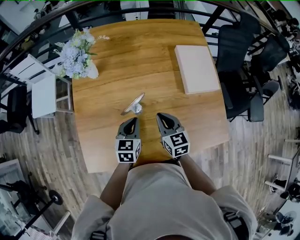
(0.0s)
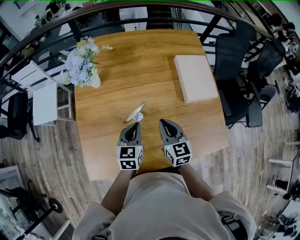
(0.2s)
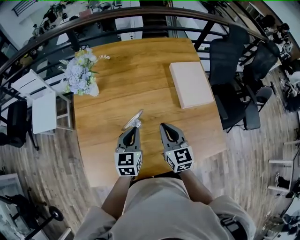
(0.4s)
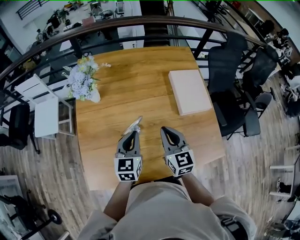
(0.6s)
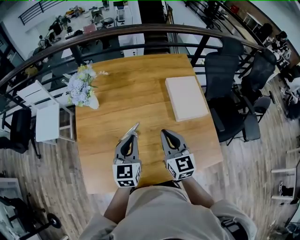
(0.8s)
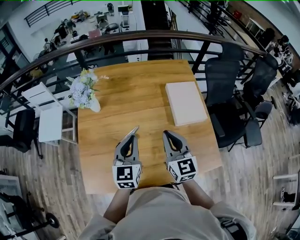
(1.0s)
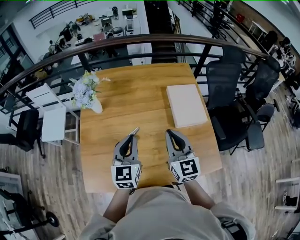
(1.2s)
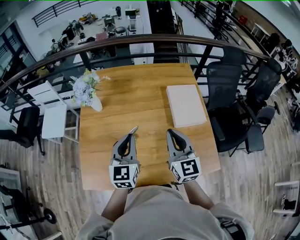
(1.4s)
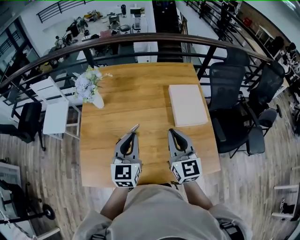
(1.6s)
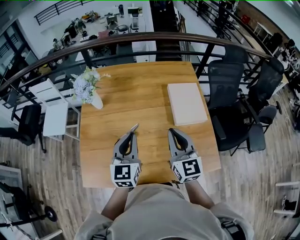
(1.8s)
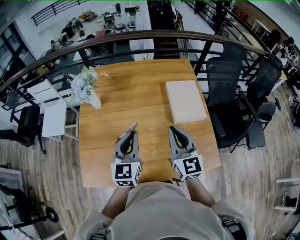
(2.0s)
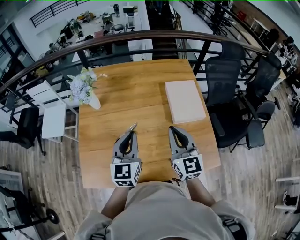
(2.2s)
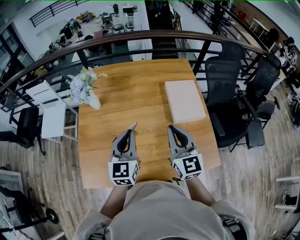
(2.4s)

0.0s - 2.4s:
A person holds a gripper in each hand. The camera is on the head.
0.0s - 1.2s: The right gripper shifts about 20 cm upward and to the right, and rotates roughly 30 degrees. The left gripper goes about 20 cm upward, and turns by roughly 30 degrees.
1.2s - 2.4s: The grippers stay close to where they were, moving slightly.

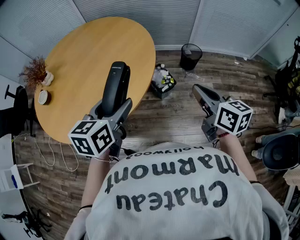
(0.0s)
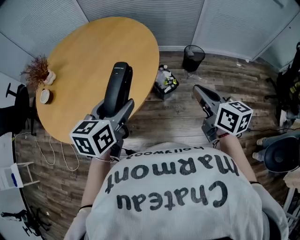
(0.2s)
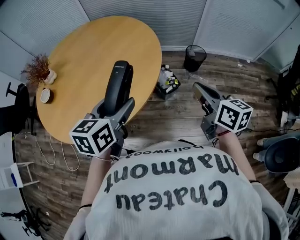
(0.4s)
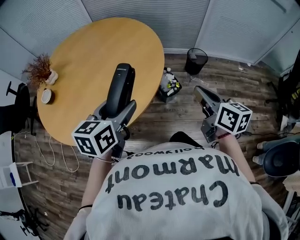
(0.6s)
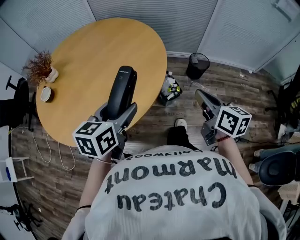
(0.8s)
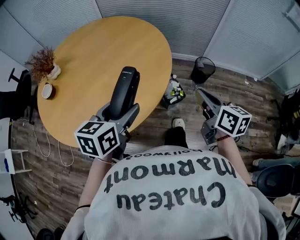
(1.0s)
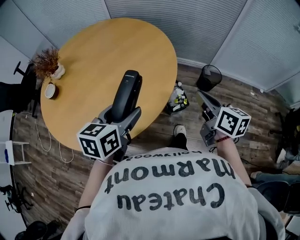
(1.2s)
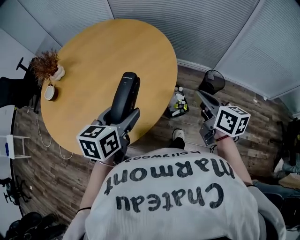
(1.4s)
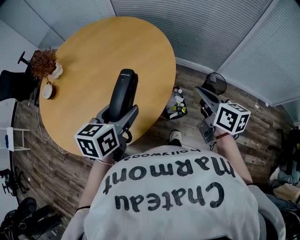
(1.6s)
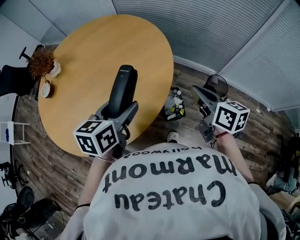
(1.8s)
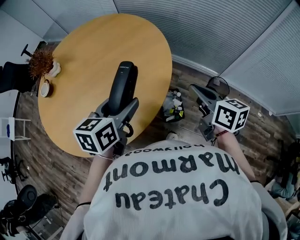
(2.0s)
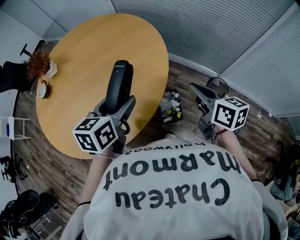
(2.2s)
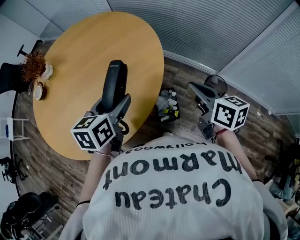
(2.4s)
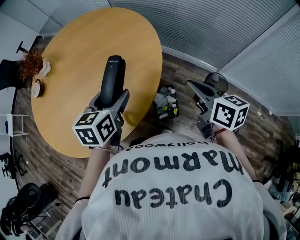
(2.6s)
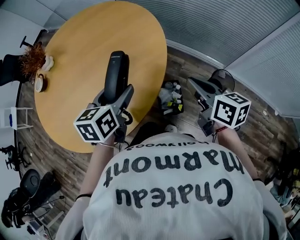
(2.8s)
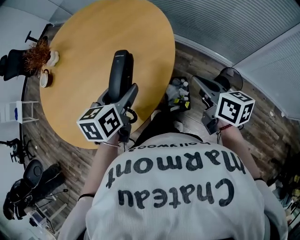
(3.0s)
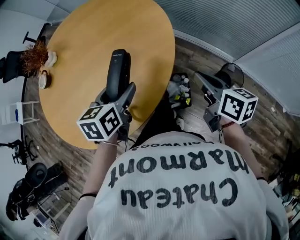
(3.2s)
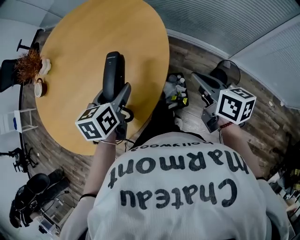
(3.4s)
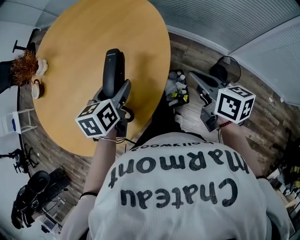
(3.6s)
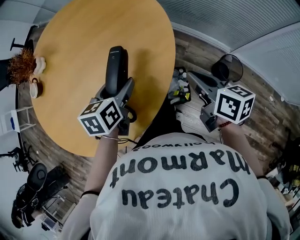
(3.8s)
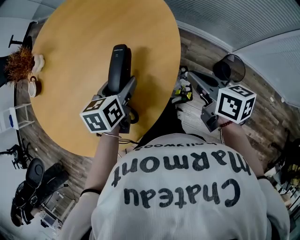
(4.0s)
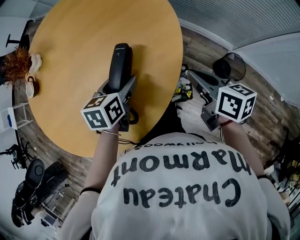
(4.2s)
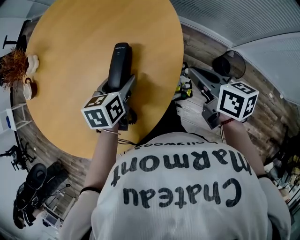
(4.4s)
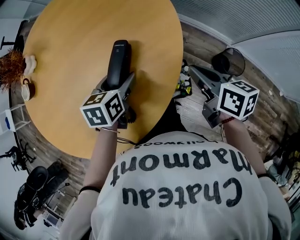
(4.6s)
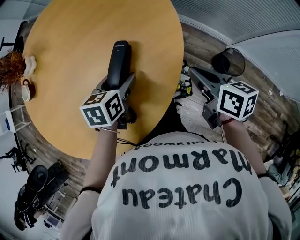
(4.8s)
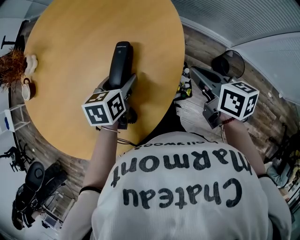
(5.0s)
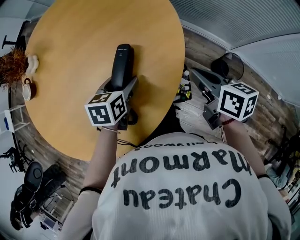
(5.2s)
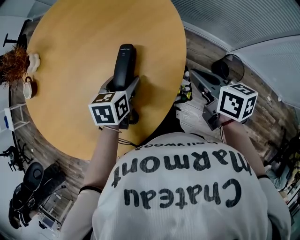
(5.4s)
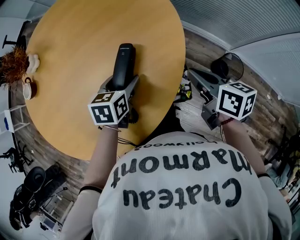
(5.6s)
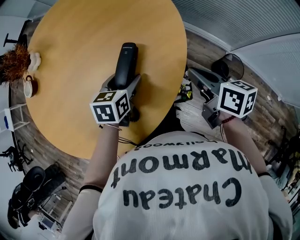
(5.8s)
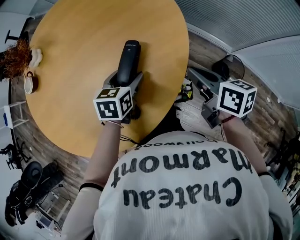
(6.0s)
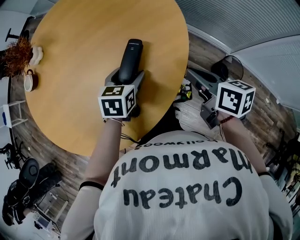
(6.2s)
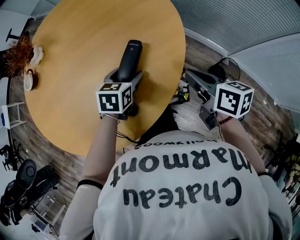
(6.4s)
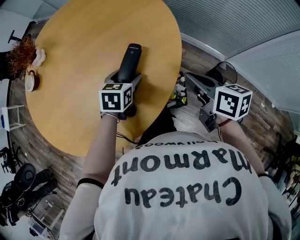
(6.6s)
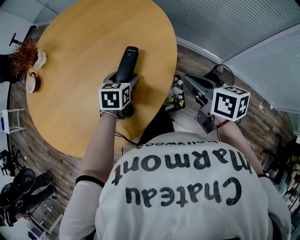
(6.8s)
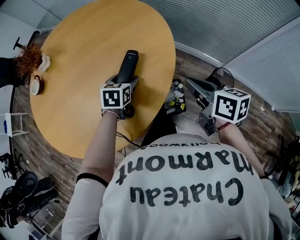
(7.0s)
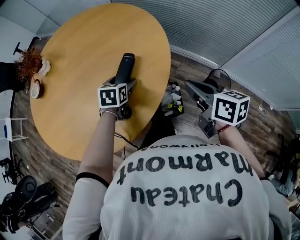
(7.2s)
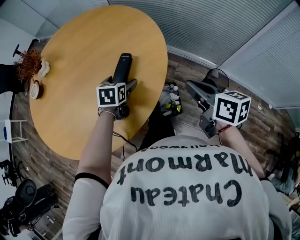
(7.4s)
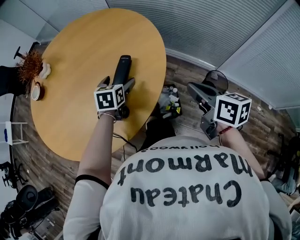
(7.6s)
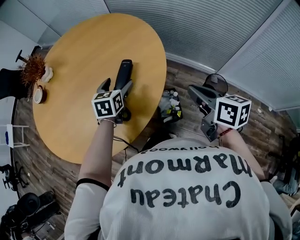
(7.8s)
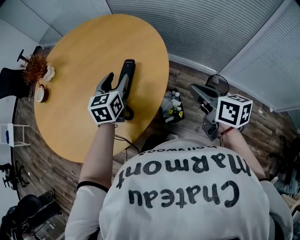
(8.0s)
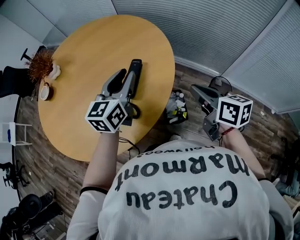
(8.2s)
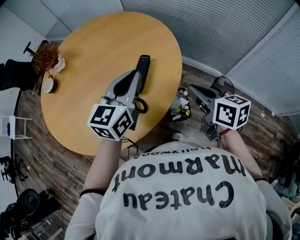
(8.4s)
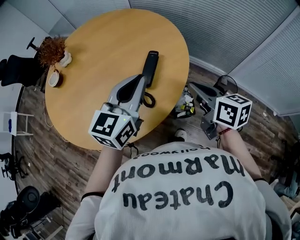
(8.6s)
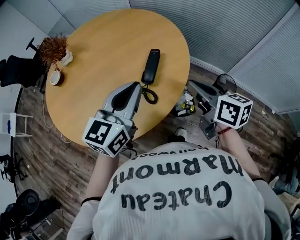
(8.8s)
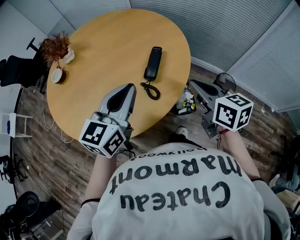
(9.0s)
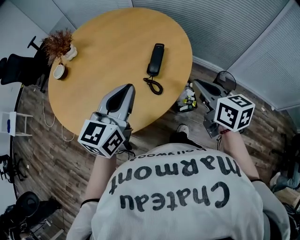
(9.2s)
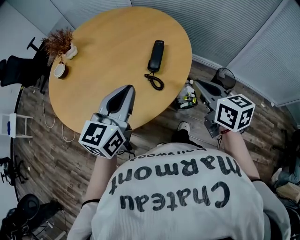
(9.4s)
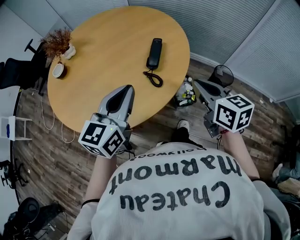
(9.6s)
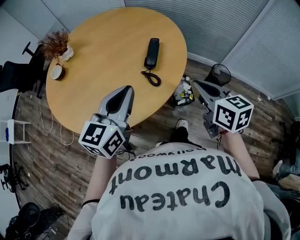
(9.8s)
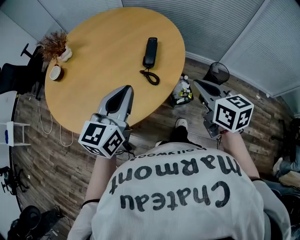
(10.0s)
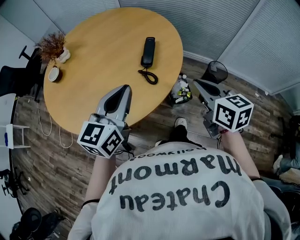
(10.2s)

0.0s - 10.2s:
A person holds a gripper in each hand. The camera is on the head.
0.0s - 1.4s: The left gripper travels forward by some 10 cm, while the right gripper goes roughly 20 cm forward.
1.4s - 3.0s: The grippers both shift forward and to the right by some 20 cm. The left gripper rotates roughly 20 degrees; the right gripper swivels roughly 20 degrees.
3.0s - 4.4s: The right gripper travels downward by about 5 cm. Meanwhile the left gripper goes approximately 15 cm downward and forward.
4.4s - 5.8s: The grippers make only small movements.
5.8s - 7.2s: The right gripper travels backward and upward by about 10 cm.
7.2s - 8.8s: The left gripper goes about 30 cm upward and backward, tips its fingers upward by about 40 degrees, and closes. The right gripper moves to the left, upward and backward, about 15 cm.
8.8s - 10.2s: The right gripper travels backward by some 10 cm; the left gripper travels backward and to the left by approximately 10 cm.

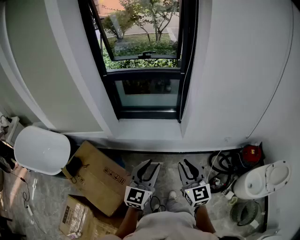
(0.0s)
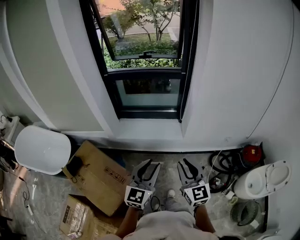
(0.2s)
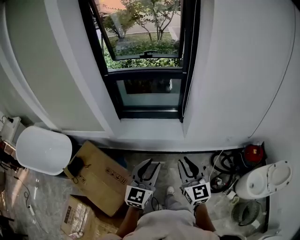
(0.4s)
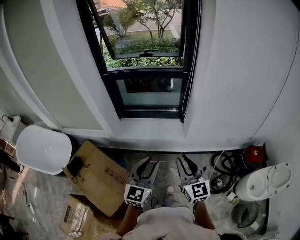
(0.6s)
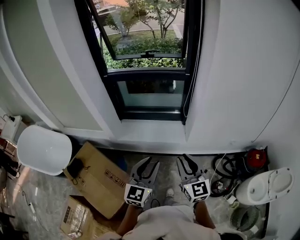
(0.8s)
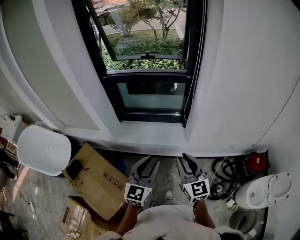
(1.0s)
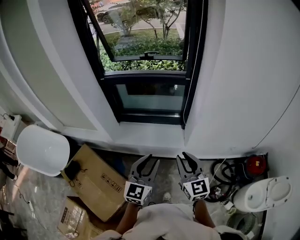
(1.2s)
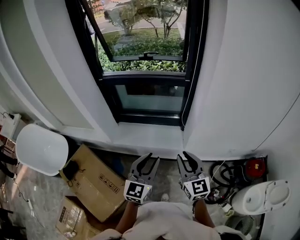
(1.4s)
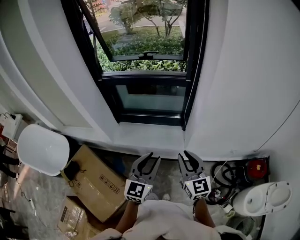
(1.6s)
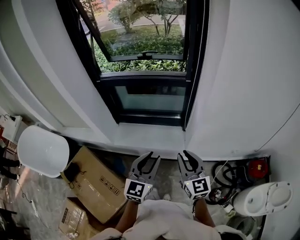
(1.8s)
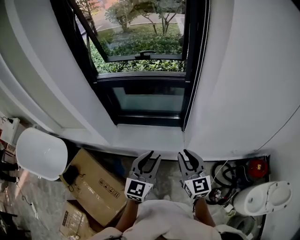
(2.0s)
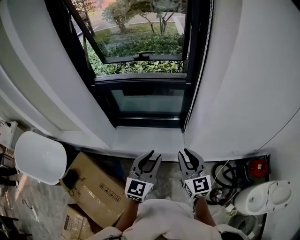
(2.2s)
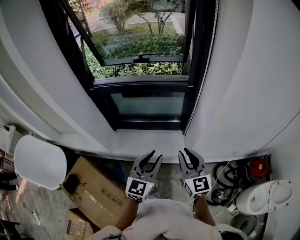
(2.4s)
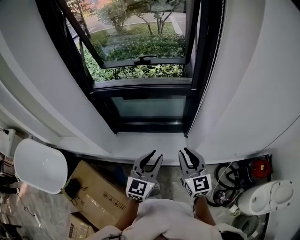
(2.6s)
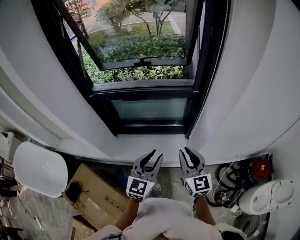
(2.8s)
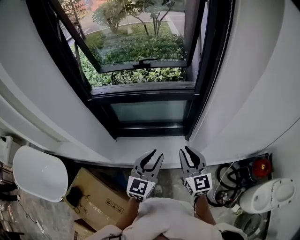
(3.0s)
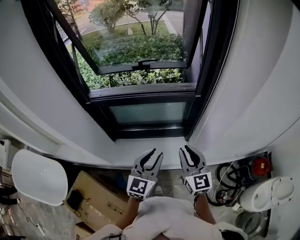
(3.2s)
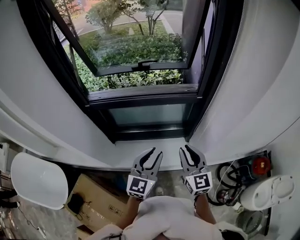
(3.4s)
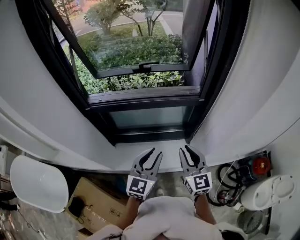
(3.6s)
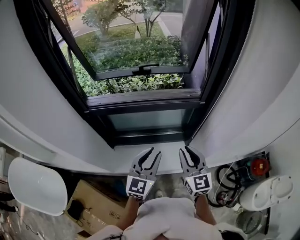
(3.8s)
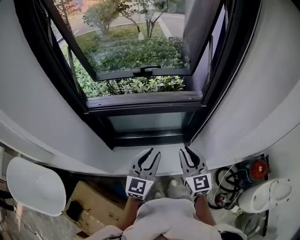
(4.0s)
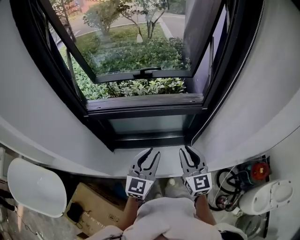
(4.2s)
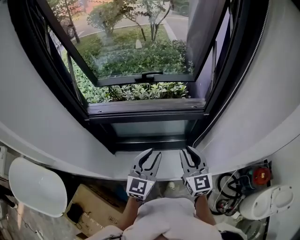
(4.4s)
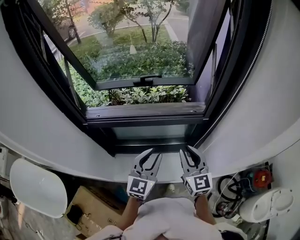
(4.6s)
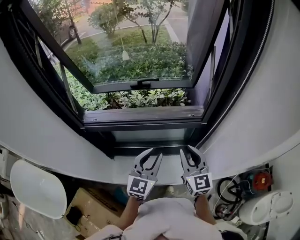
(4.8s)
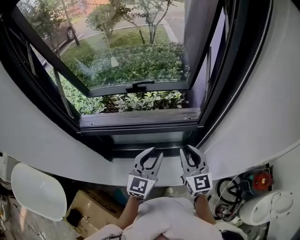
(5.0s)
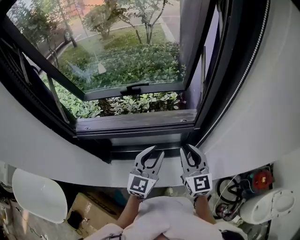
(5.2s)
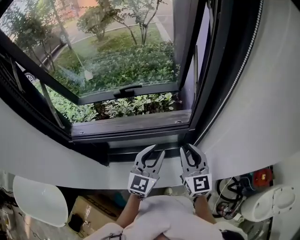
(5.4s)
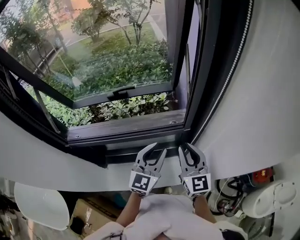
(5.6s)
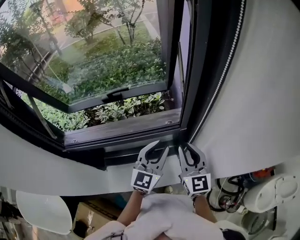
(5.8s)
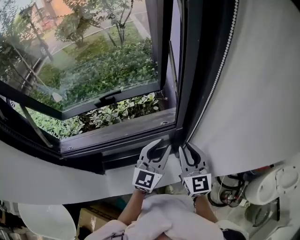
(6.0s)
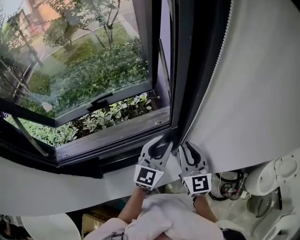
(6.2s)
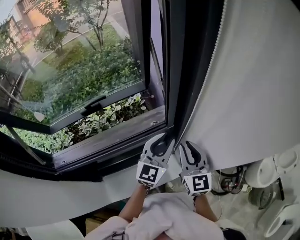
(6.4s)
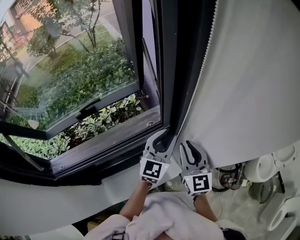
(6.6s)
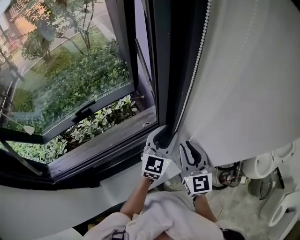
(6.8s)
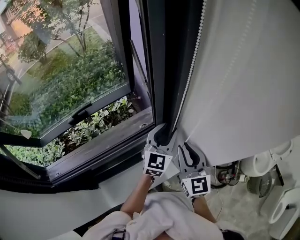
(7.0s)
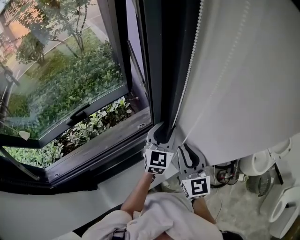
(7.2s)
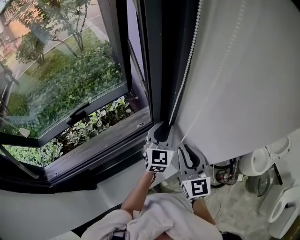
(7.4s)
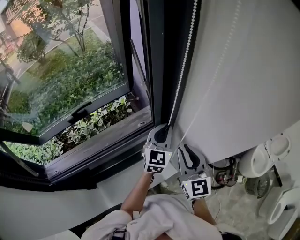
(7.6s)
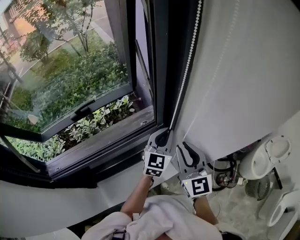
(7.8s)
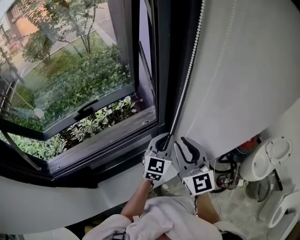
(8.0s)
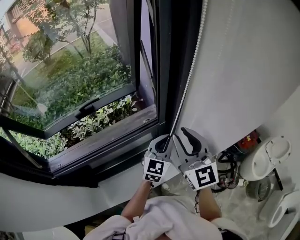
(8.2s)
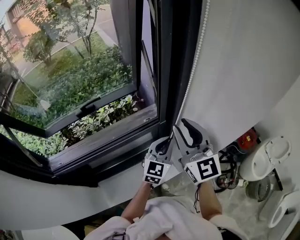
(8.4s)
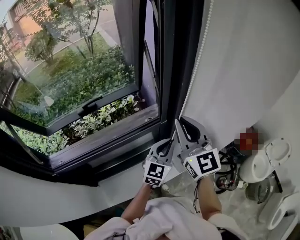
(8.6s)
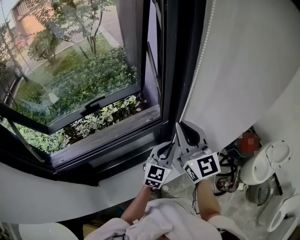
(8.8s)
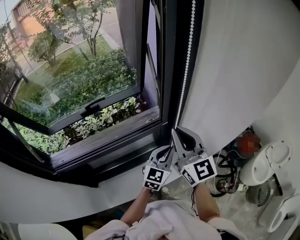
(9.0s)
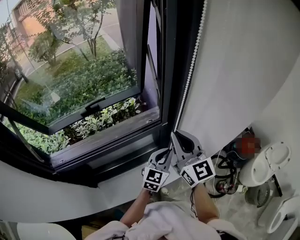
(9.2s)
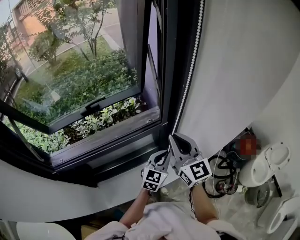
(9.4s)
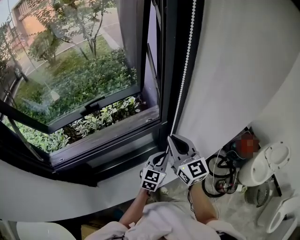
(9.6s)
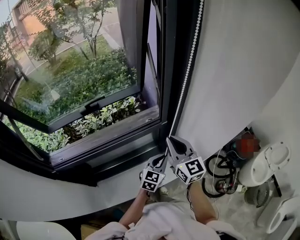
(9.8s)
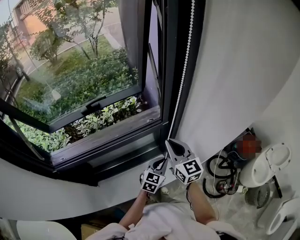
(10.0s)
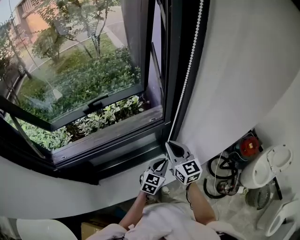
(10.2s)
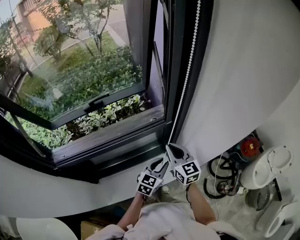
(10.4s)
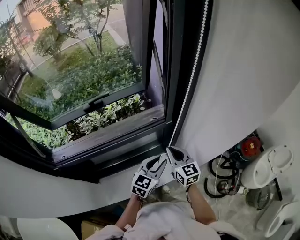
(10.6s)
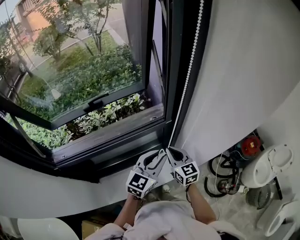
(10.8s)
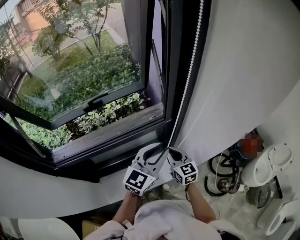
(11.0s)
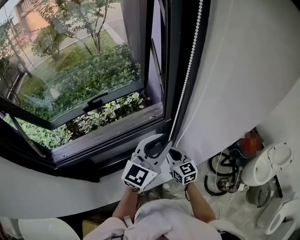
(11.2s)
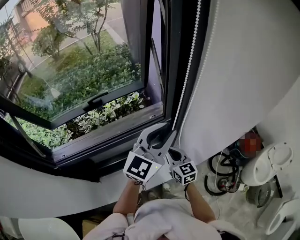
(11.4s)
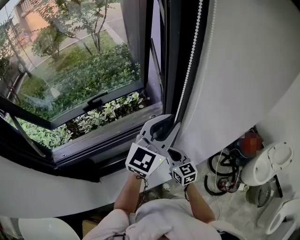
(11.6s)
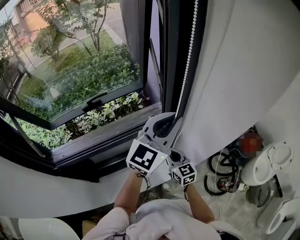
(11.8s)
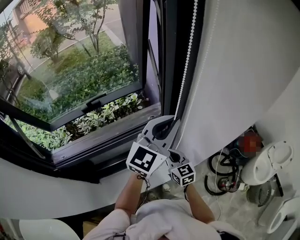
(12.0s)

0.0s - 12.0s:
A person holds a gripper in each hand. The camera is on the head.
0.0s - 1.6s: Both grippers move forward, about 20 cm.
1.6s - 3.0s: The two grippers go roughly 20 cm forward.
3.0s - 4.4s: The left gripper shifts about 15 cm forward and to the left. Meanwhile the right gripper moves forward, approximately 15 cm.
4.4s - 6.0s: Both grippers travel together to the right and forward, some 20 cm.
6.0s - 7.6s: The left gripper is displaced forward and to the right by approximately 10 cm, and closes, while the right gripper heads to the right, covering about 5 cm.
7.6s - 9.0s: The left gripper heads backward, covering some 10 cm, while the right gripper heads upward and to the left, covering approximately 10 cm.
9.0s - 10.4s: The right gripper shifts about 20 cm downward, and turns by about 20 degrees, while the left gripper is displaced downward by roughly 10 cm.
10.4s - 12.0s: The right gripper shifts roughly 5 cm downward. The left gripper shifts roughly 30 cm upward, and swivels about 30 degrees.
